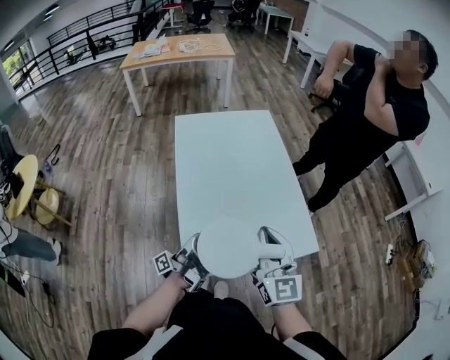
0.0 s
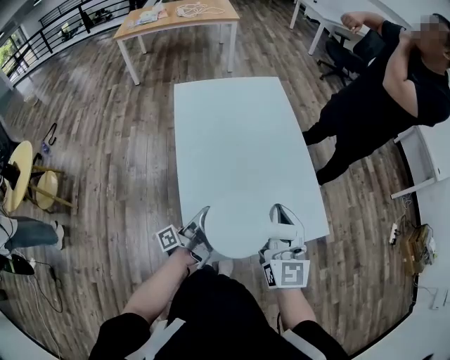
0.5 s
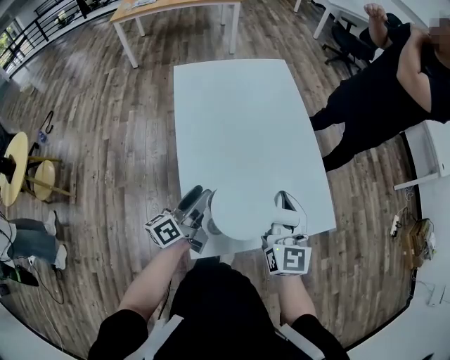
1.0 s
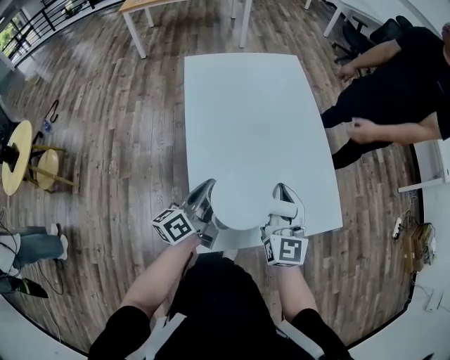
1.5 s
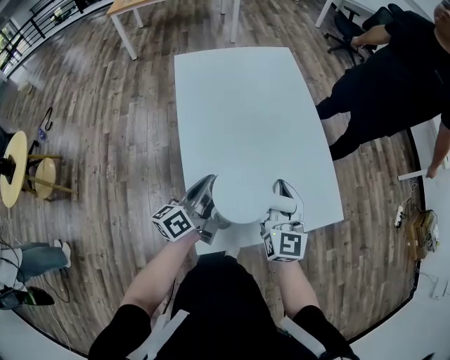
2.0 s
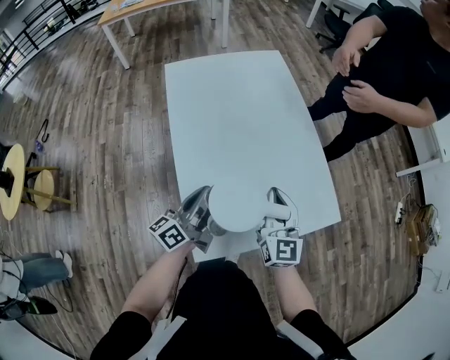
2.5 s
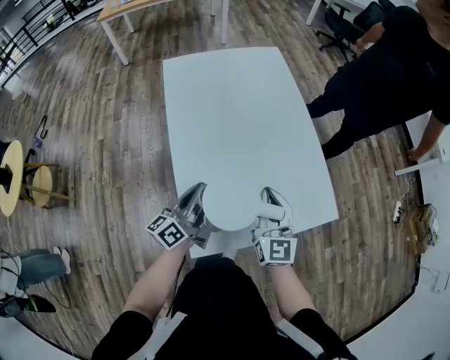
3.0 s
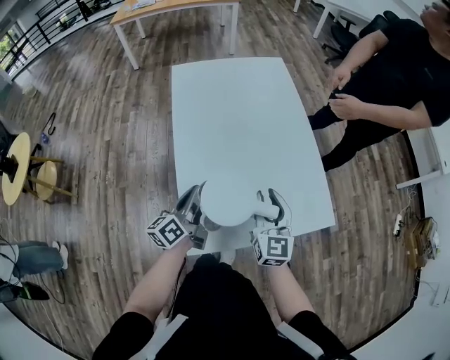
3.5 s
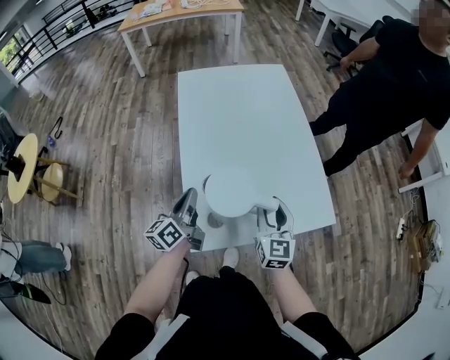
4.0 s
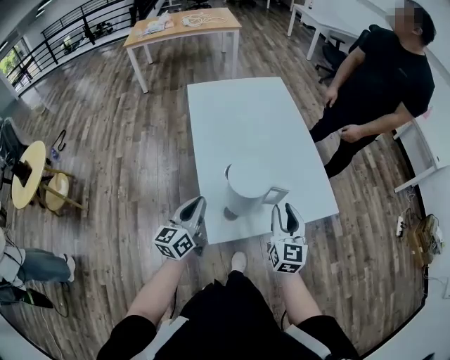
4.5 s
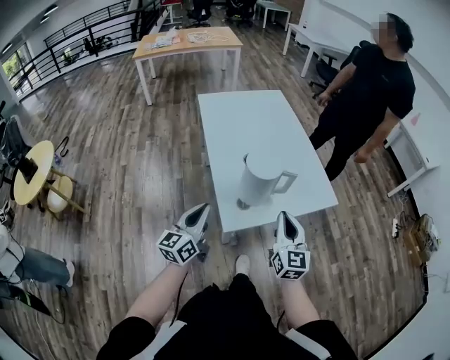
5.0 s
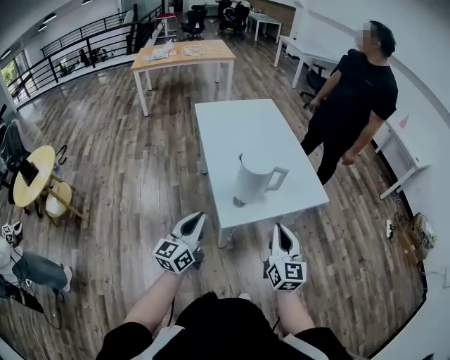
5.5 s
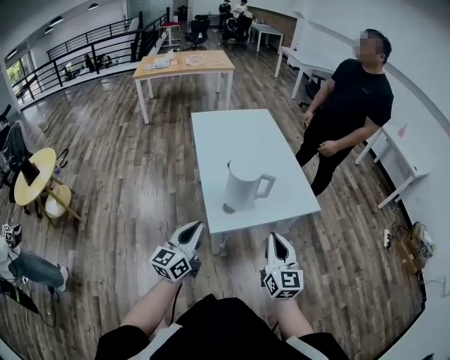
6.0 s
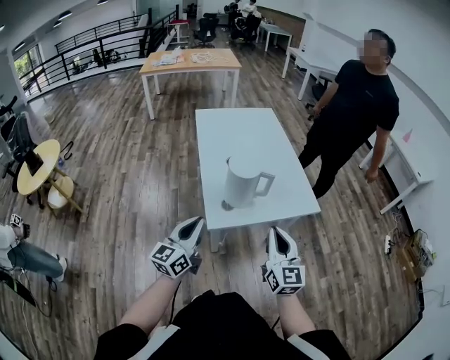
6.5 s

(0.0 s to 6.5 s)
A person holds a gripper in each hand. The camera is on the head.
0.0 s - 2.0 s: The right gripper shifts roughly 10 cm downward.
2.0 s - 4.5 s: The right gripper ends up some 10 cm from where it was, and opens up.
4.5 s - 6.5 s: The right gripper moves roughly 20 cm, and closes its fingers.

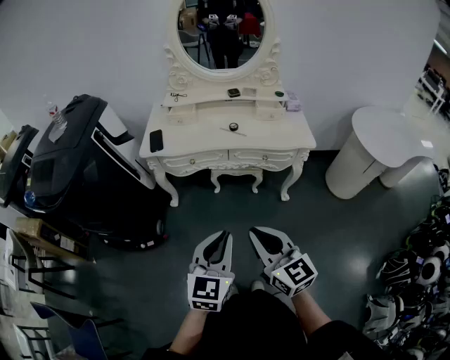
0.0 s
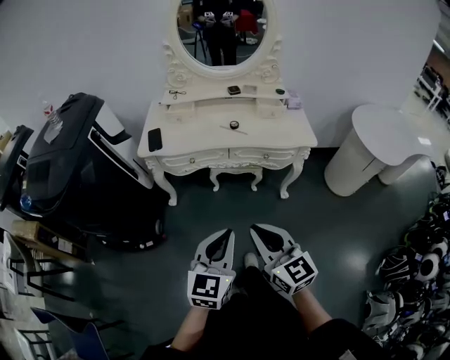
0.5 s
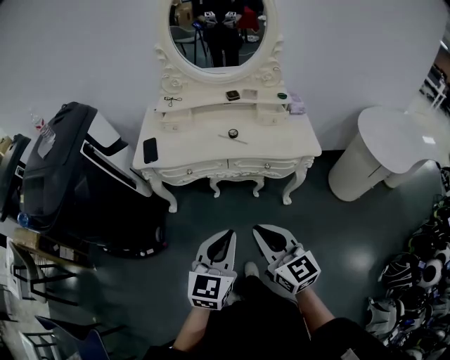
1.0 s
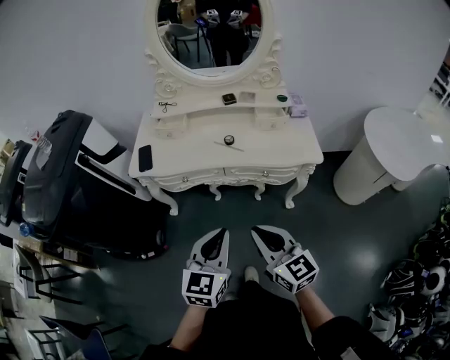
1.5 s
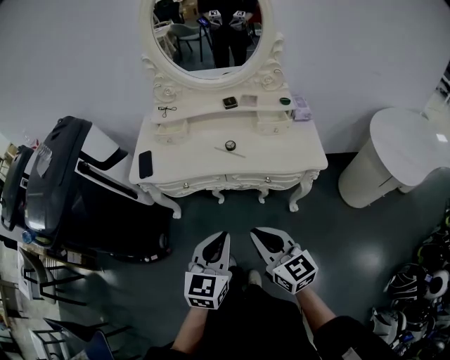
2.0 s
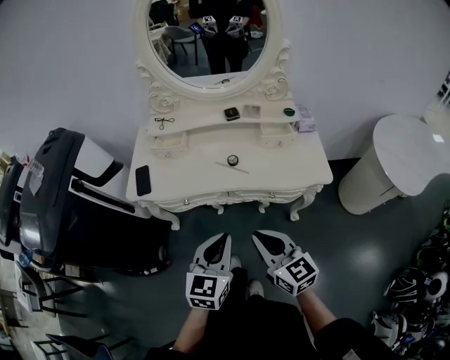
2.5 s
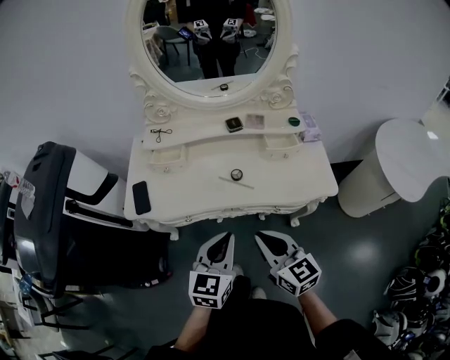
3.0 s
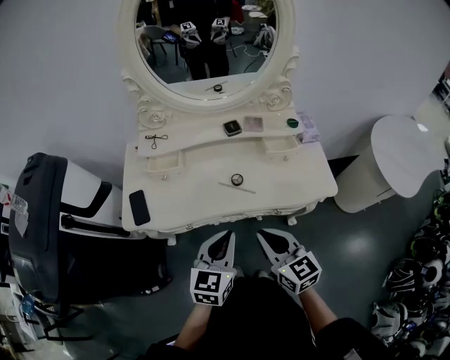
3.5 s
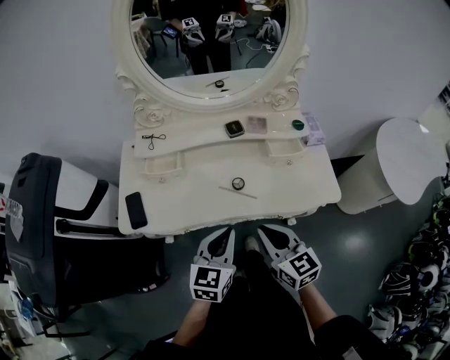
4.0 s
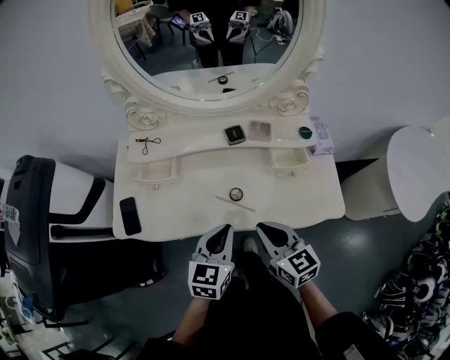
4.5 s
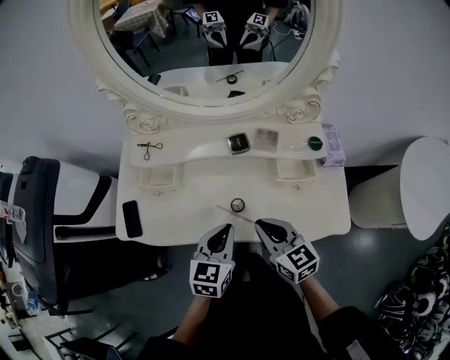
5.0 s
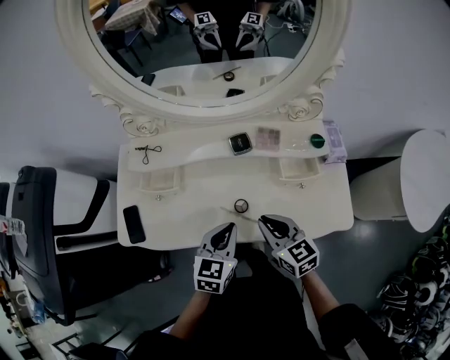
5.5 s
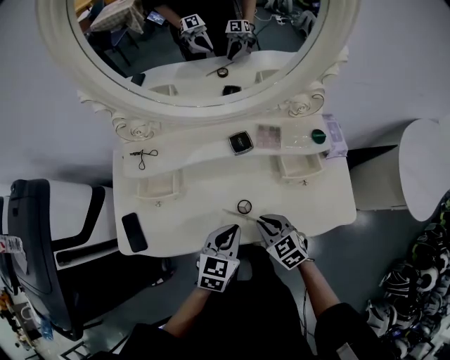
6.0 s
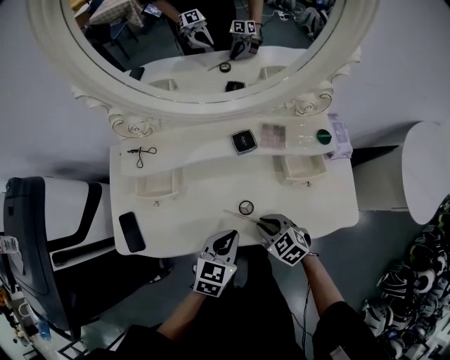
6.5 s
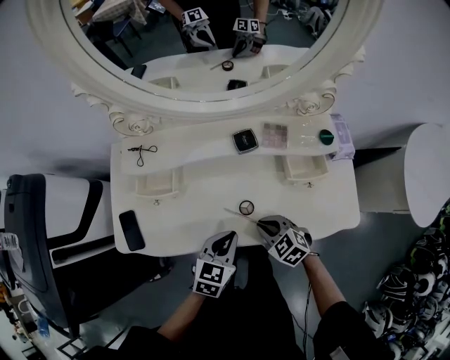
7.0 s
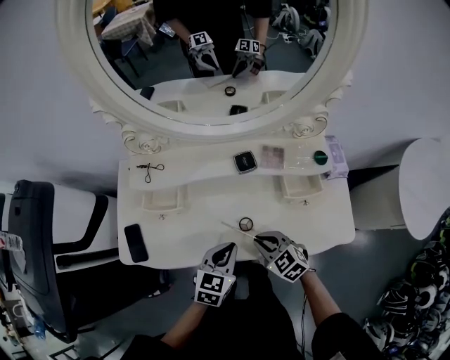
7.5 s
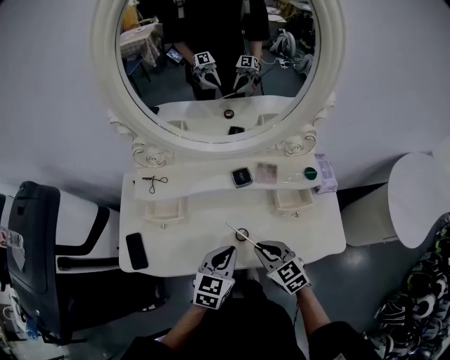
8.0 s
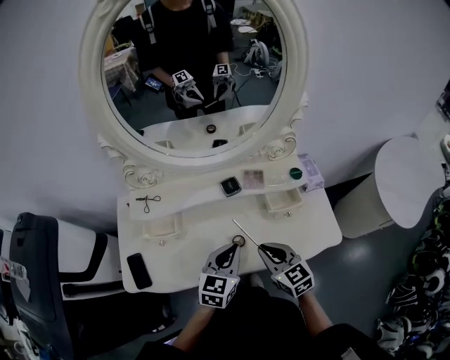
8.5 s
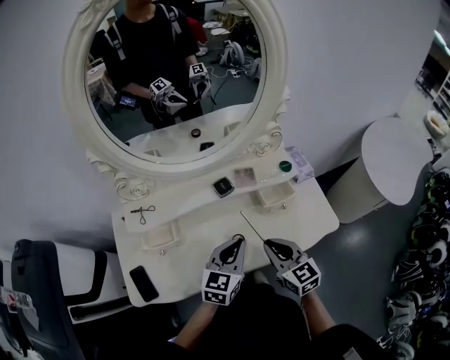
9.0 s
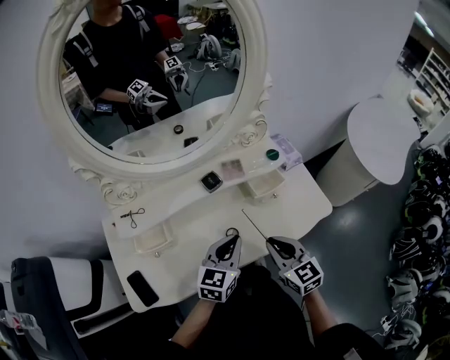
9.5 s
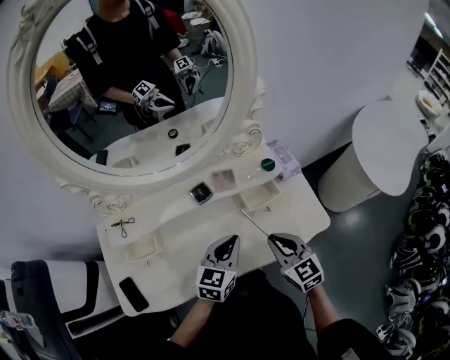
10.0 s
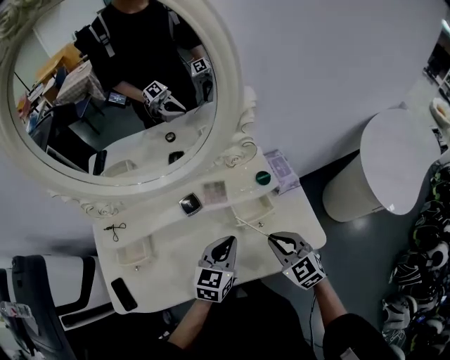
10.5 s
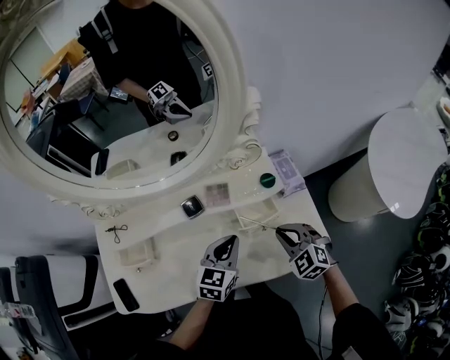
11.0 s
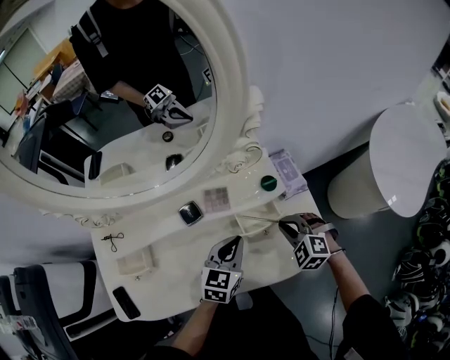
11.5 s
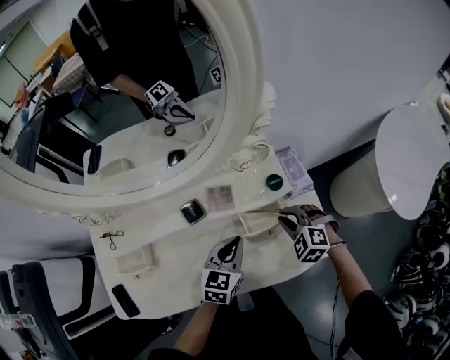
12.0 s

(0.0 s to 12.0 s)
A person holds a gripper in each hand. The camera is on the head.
0.0 s - 2.0 s: The left gripper heads forward, covering approximately 20 cm, while the right gripper goes approximately 20 cm forward and to the right.
2.0 s - 4.0 s: The two grippers go about 25 cm forward.
4.0 s - 6.0 s: The right gripper heads downward and forward, covering roughly 20 cm, and swivels roughly 30 degrees; the left gripper heads forward and downward, covering roughly 15 cm.
6.0 s - 8.0 s: The right gripper moves upward, about 10 cm.
8.0 s - 10.0 s: The left gripper travels to the right and forward by about 10 cm; the right gripper is displaced to the right and upward by some 10 cm, and swivels some 30 degrees.
10.0 s - 12.0 s: The right gripper travels forward, downward and to the right by approximately 20 cm, and twists roughly 40 degrees counterclockwise, seen from behind. The left gripper heads forward and downward, covering about 10 cm.

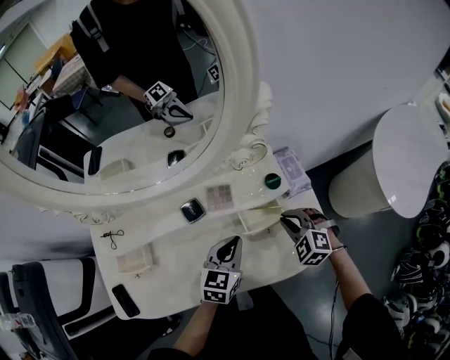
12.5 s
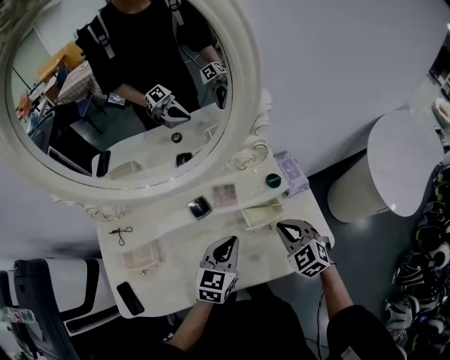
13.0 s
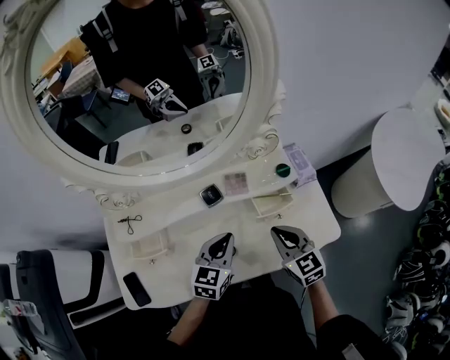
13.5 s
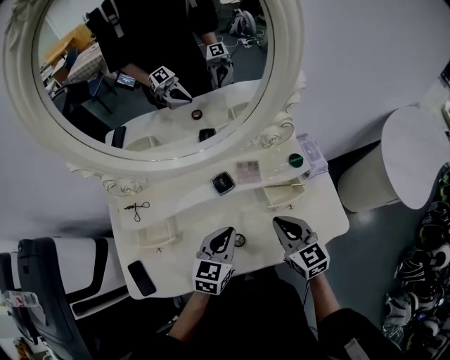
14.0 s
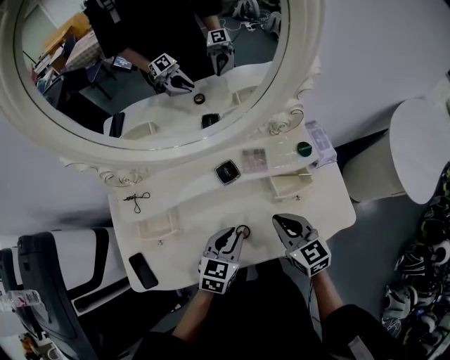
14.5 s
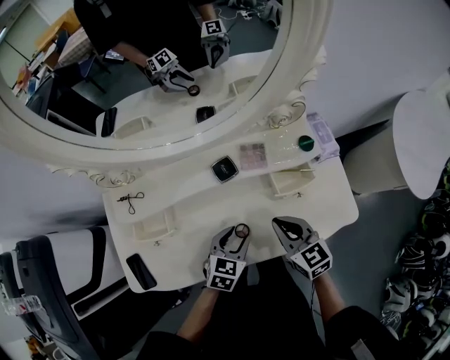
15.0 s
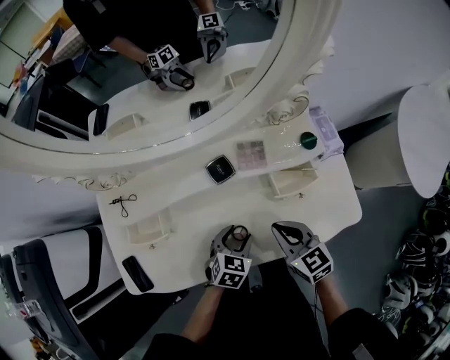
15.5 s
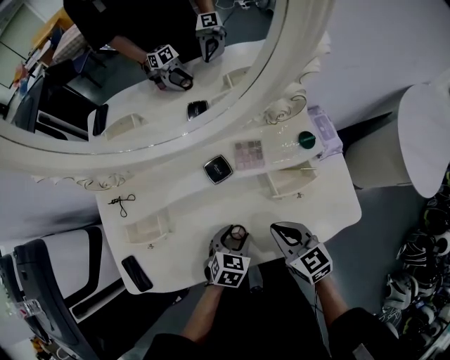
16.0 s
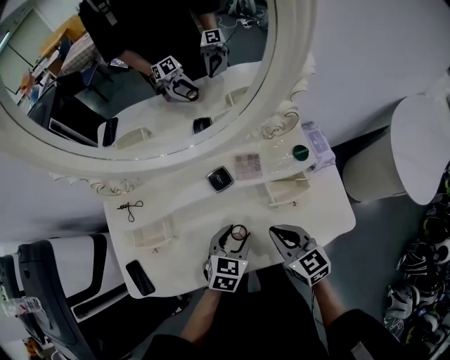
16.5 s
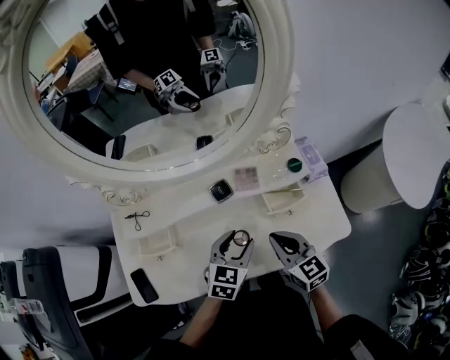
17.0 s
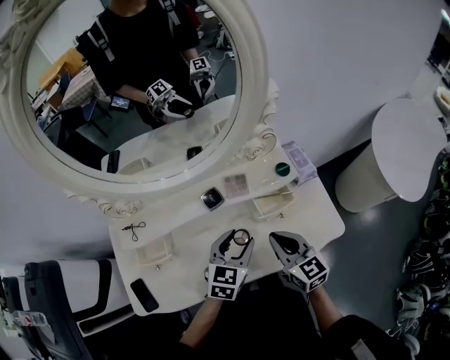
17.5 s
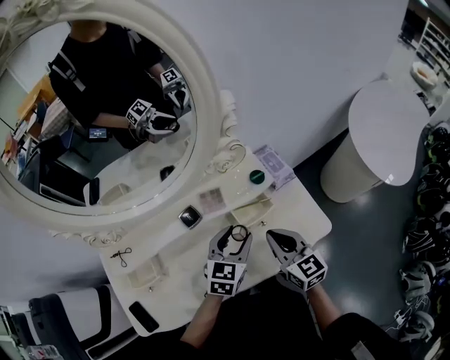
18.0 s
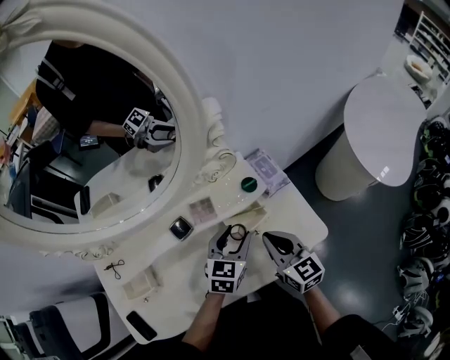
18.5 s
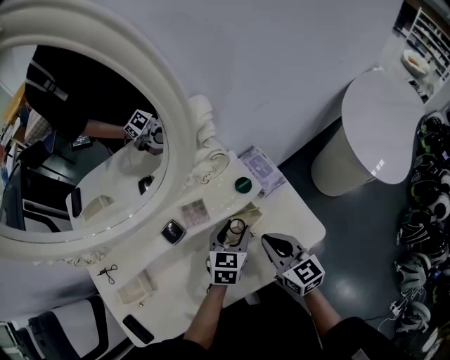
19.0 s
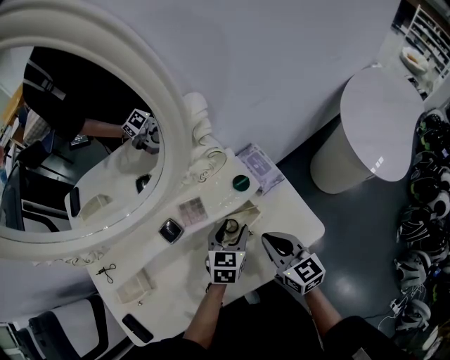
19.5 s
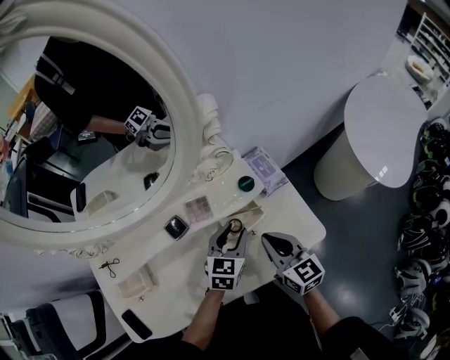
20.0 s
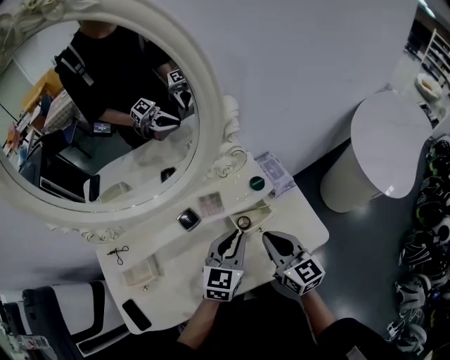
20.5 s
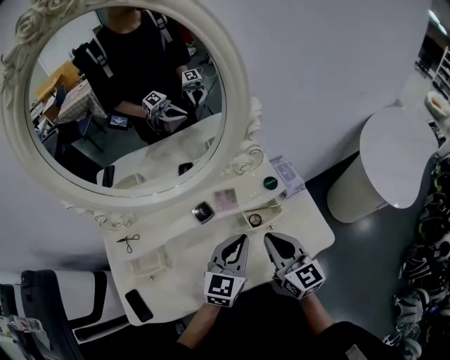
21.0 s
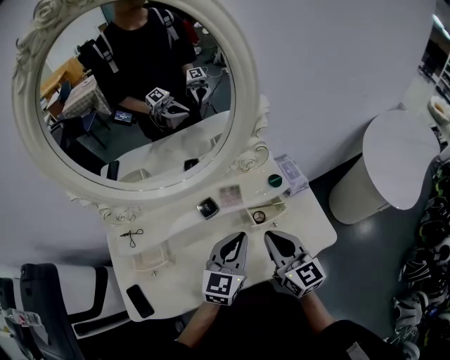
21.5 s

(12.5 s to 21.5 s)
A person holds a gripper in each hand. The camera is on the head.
12.5 s - 14.5 s: Both grippers move to the left and backward, about 15 cm. The right gripper rolls clockwise, seen from behind, by some 40 degrees.
14.5 s - 17.0 s: The left gripper reaches approximately 10 cm downward, then returns, and opens up.
17.0 s - 19.5 s: The left gripper moves to the right, forward and downward, about 20 cm. The right gripper travels to the right and forward by roughly 15 cm.
19.5 s - 21.5 s: The right gripper moves upward, to the left and backward, approximately 15 cm. The left gripper travels upward, backward and to the left by roughly 20 cm, swivels about 20 degrees, and closes its fingers.
